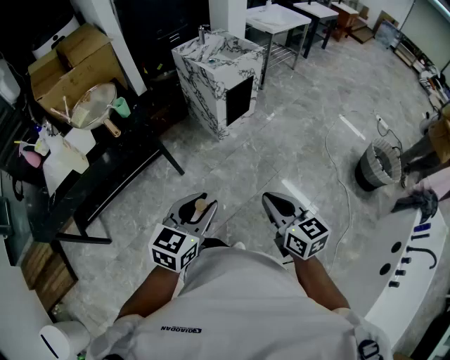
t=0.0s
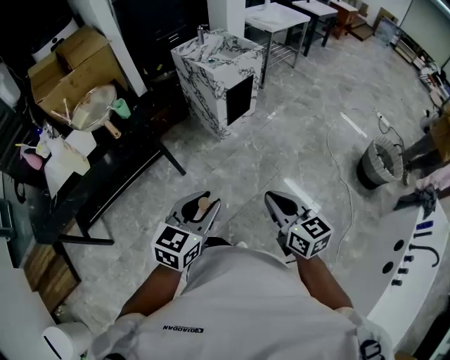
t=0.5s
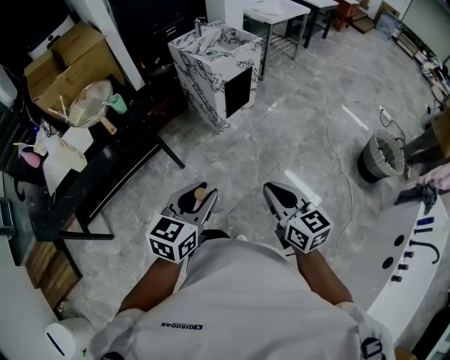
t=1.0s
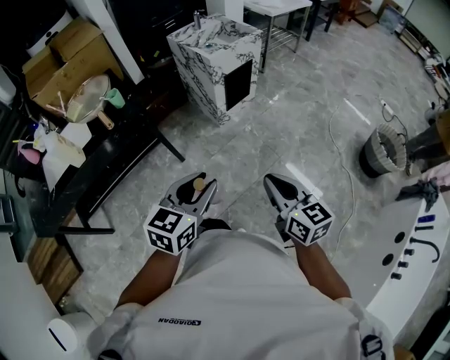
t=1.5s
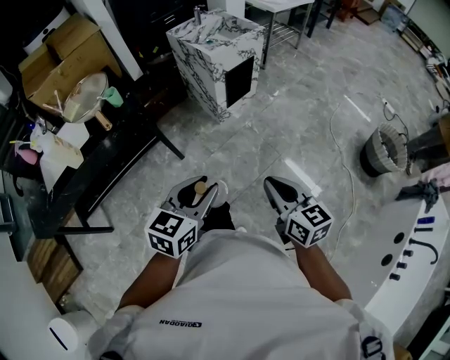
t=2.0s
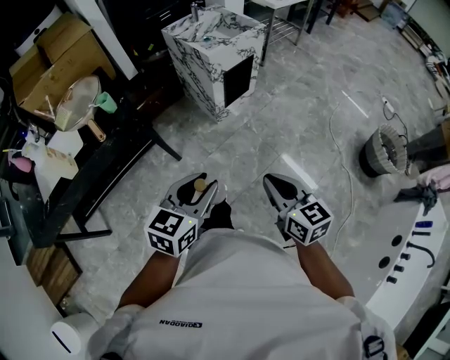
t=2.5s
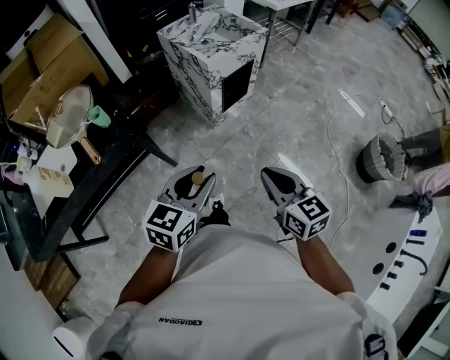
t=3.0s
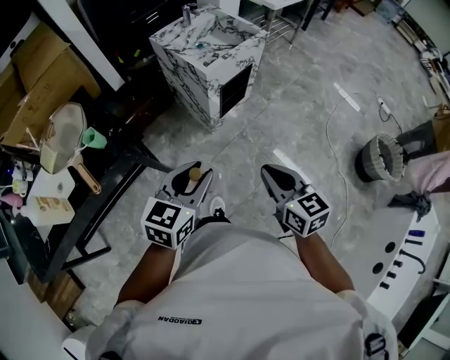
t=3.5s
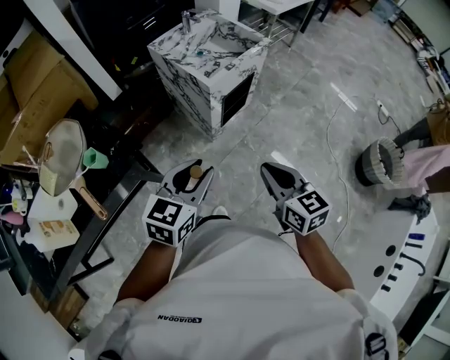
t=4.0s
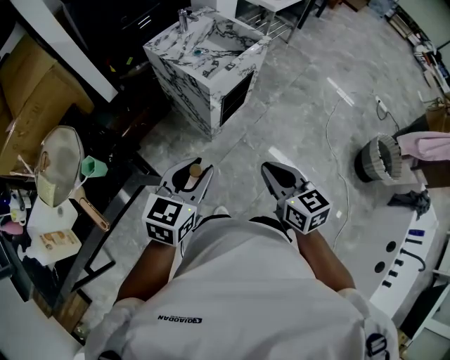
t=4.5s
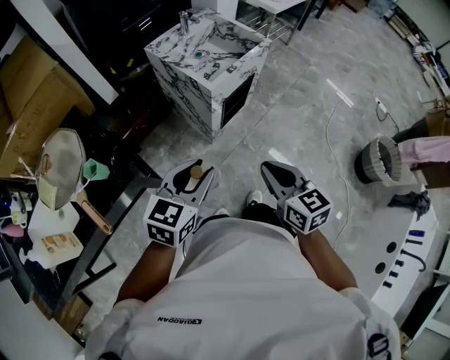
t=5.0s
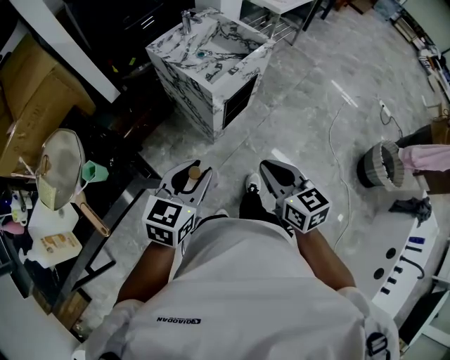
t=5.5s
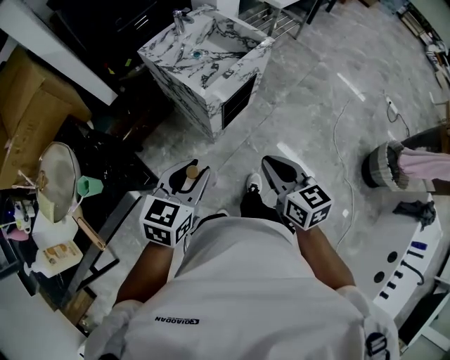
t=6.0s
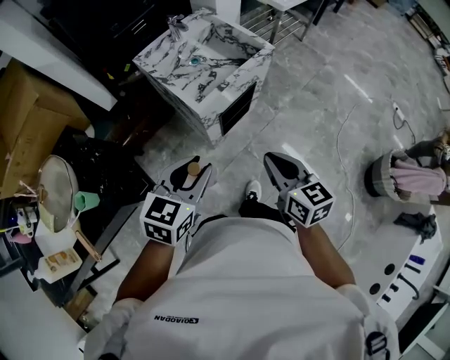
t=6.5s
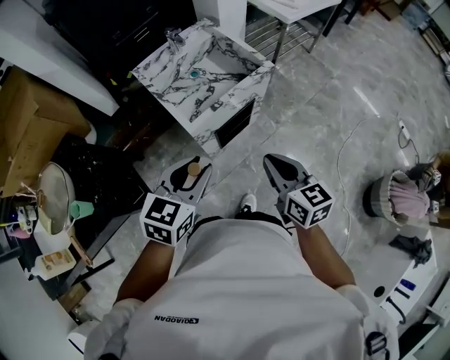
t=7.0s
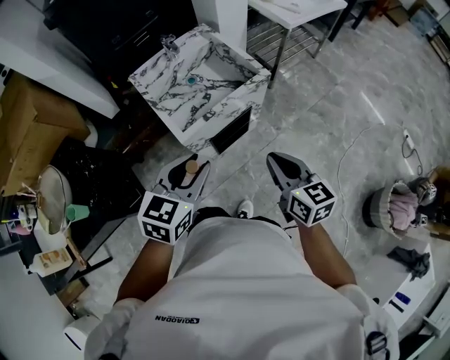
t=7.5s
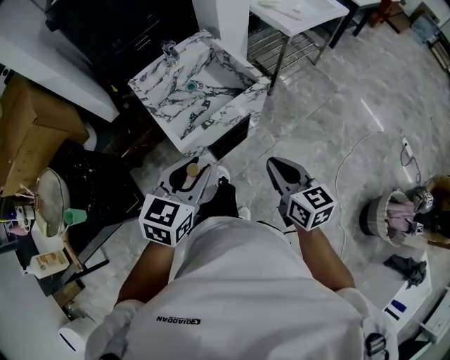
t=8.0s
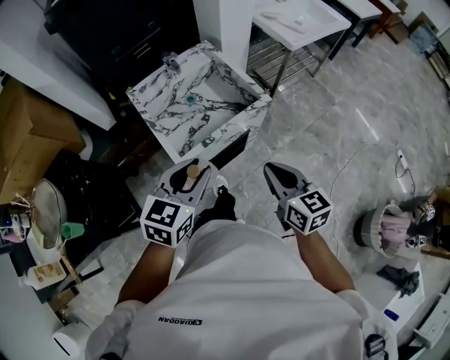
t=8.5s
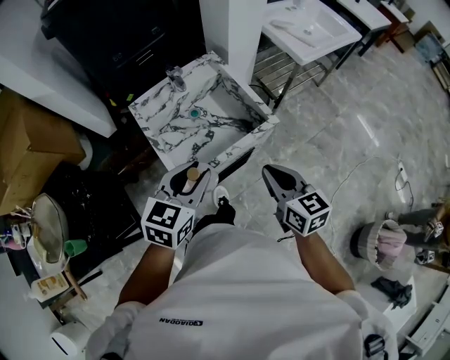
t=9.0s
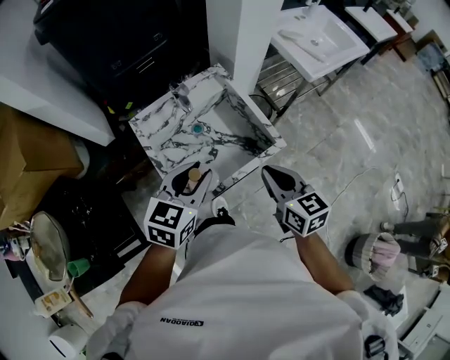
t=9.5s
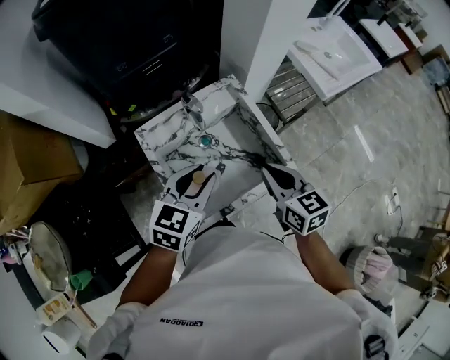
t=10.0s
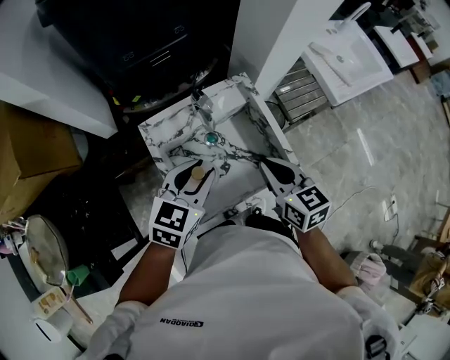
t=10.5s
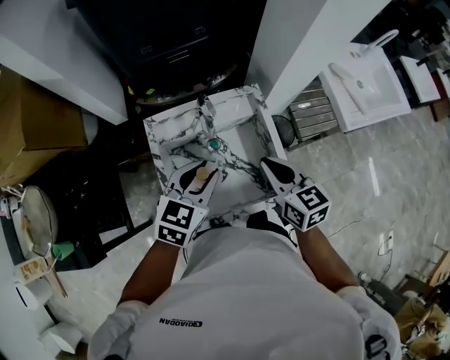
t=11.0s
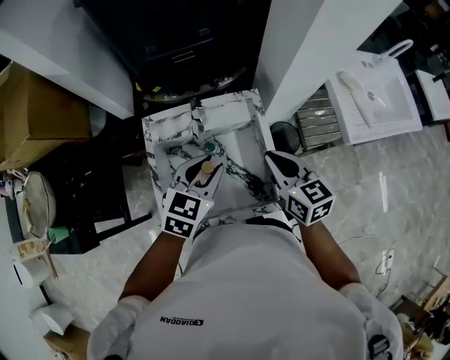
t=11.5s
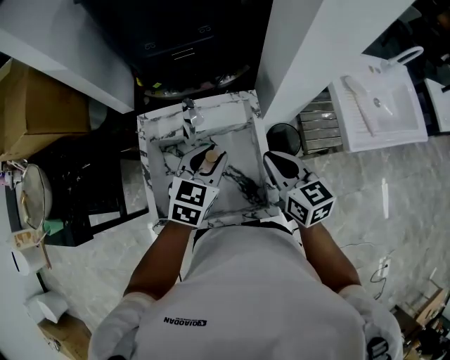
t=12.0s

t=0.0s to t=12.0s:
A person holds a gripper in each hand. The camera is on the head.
t=0.0s to t=2.0s: The grippers make only small movements.
t=2.0s to t=4.0s: The grippers both shift forward by about 35 cm.
t=4.0s to t=6.0s: Both grippers travel together forward, about 10 cm.
t=6.0s to t=8.0s: Both grippers move forward and to the right, some 25 cm.
t=8.0s to t=10.0s: Both grippers travel together forward, some 35 cm.
t=10.0s to t=12.0s: The right gripper travels forward and to the right by about 15 cm, and turns by about 20 degrees; the left gripper travels forward, to the right and downward by about 20 cm, and rotates approximately 20 degrees.

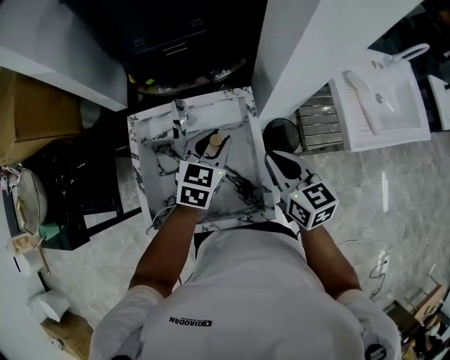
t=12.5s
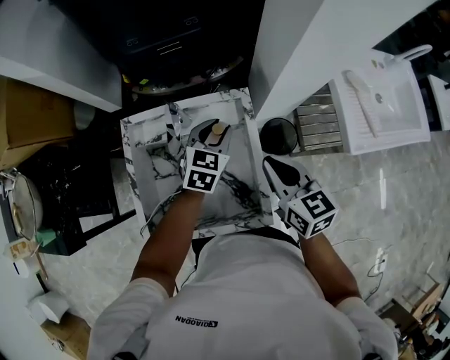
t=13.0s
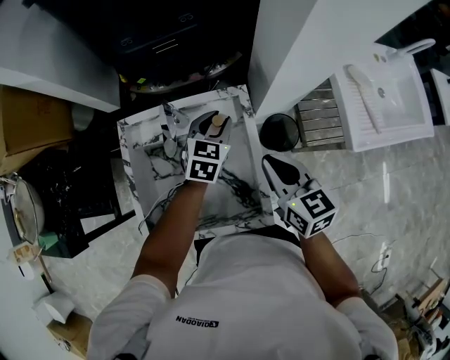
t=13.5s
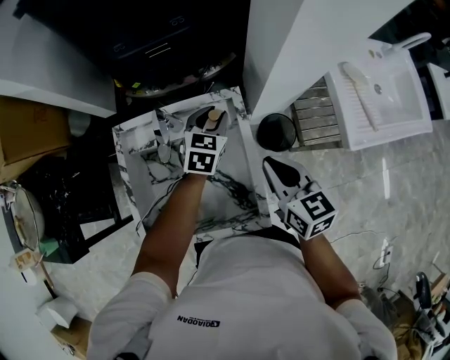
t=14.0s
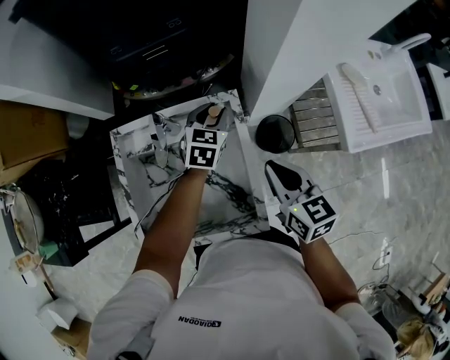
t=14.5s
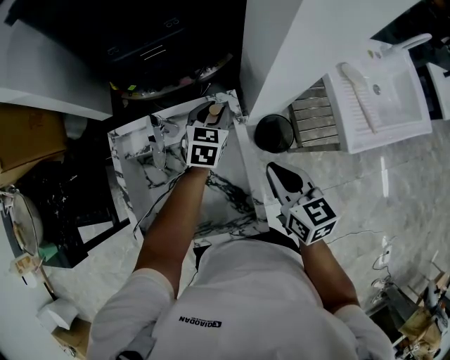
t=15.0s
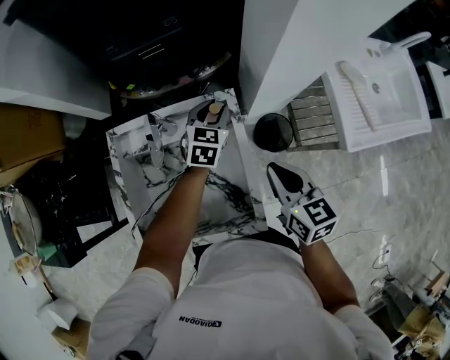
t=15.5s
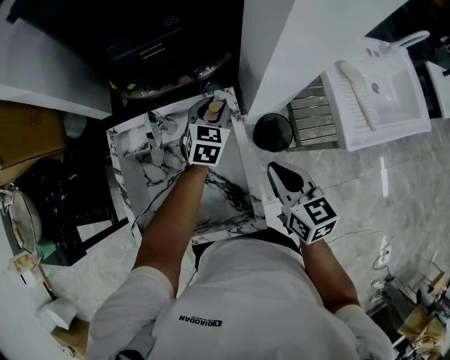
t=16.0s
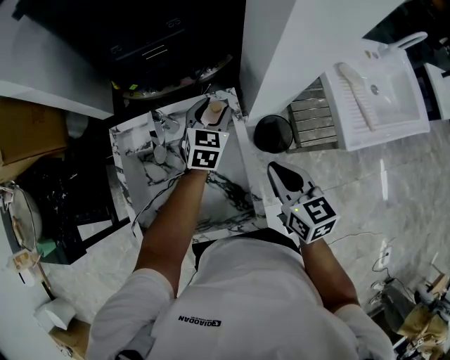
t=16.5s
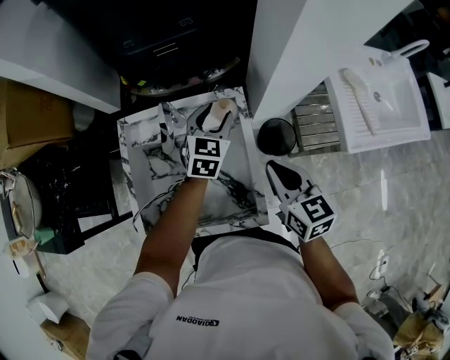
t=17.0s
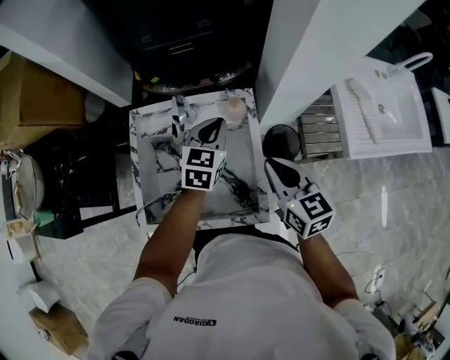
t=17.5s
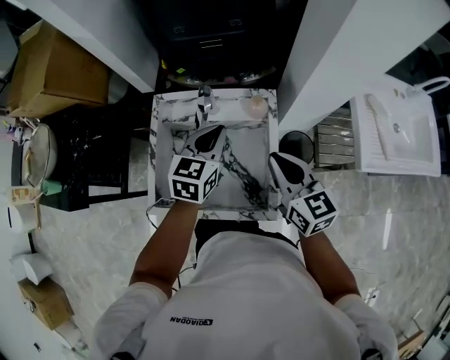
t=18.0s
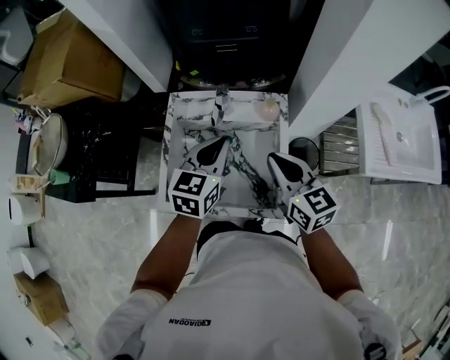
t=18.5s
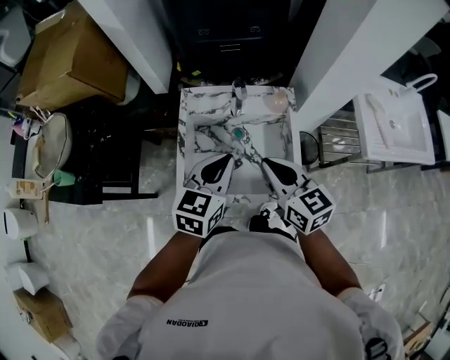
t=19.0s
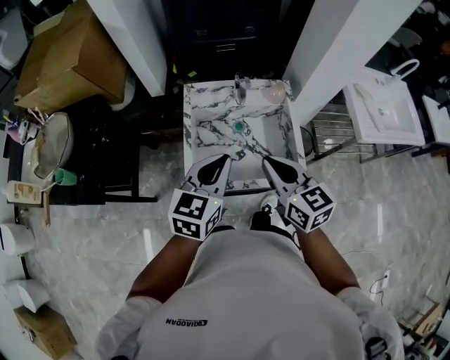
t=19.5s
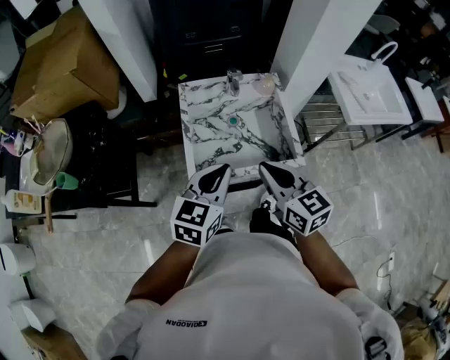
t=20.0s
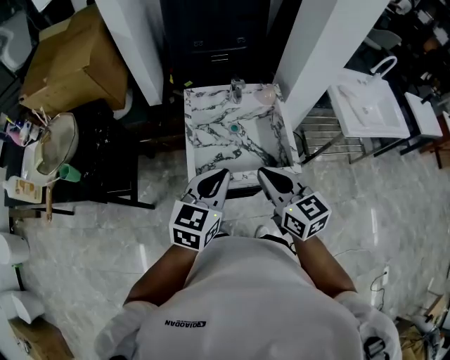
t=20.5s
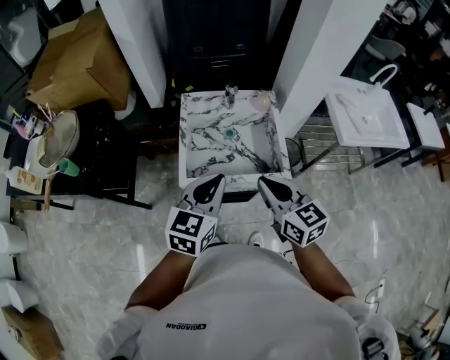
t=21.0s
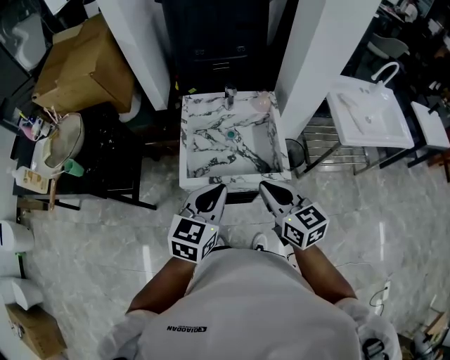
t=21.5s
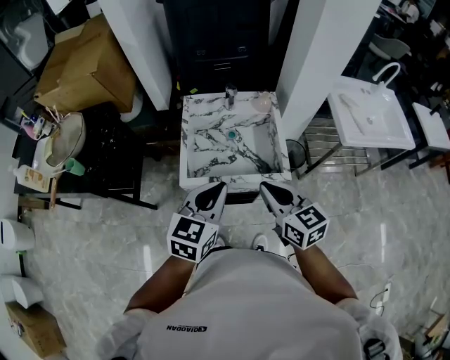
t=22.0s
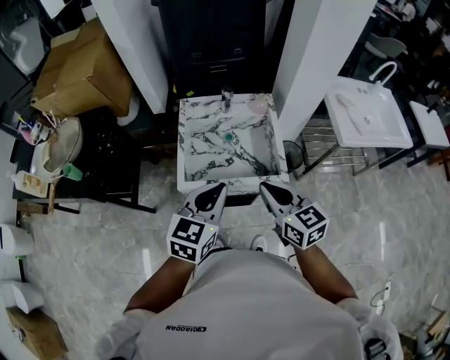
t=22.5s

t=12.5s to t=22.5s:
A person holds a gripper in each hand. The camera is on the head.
t=12.5s to t=14.5s: The left gripper moves forward, downward and to the right, approximately 15 cm.
t=14.5s to t=16.5s: There are only small adjustments of the grippers.
t=16.5s to t=18.5s: The left gripper moves backward, to the left and upward, about 30 cm, and closes its fingers; the right gripper is displaced to the left and upward by about 15 cm, and turns by roughly 20 degrees.
t=18.5s to t=20.5s: Both grippers travel together backward and to the left, approximately 30 cm.
t=20.5s to t=22.5s: Both grippers move to the right, about 5 cm.

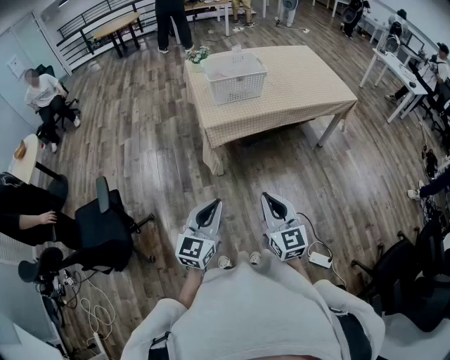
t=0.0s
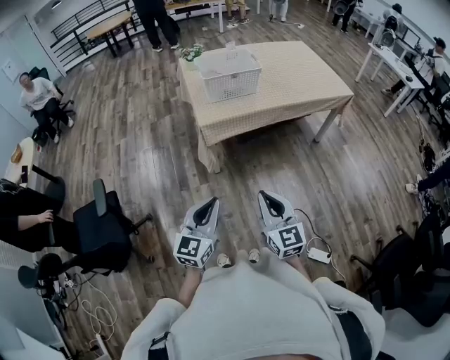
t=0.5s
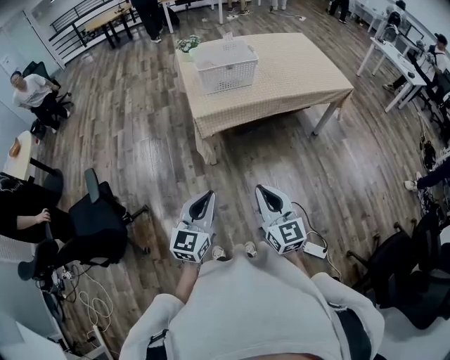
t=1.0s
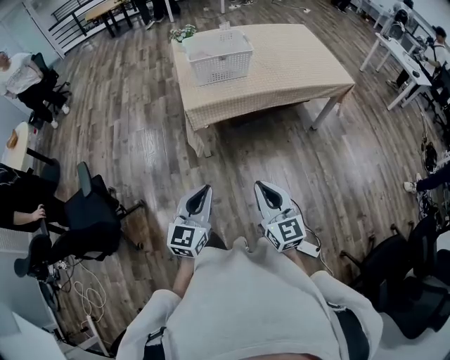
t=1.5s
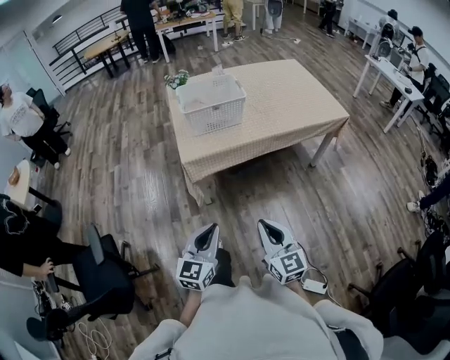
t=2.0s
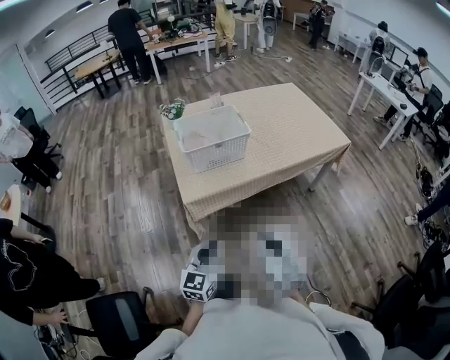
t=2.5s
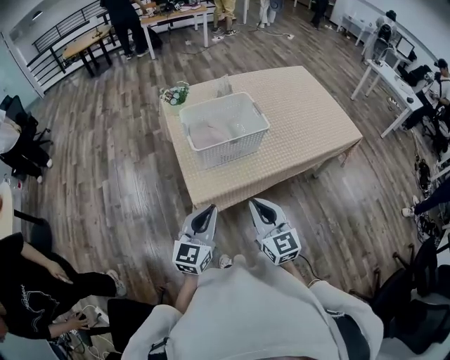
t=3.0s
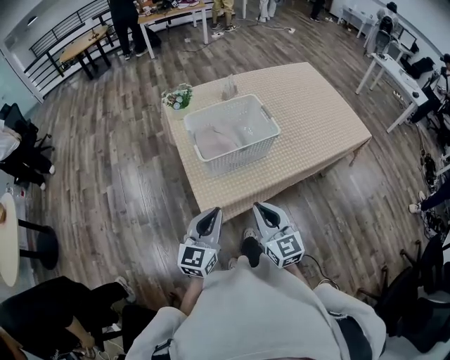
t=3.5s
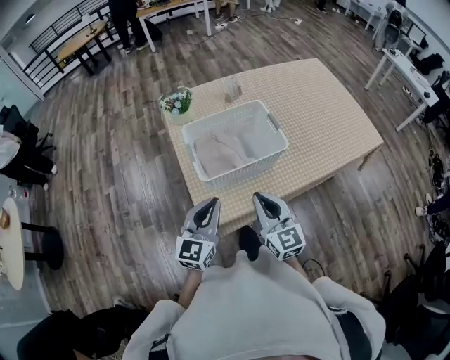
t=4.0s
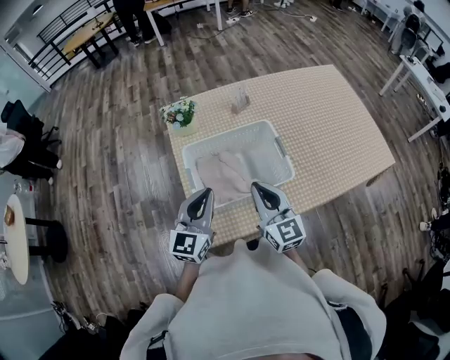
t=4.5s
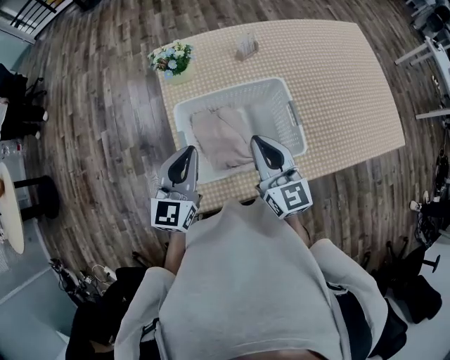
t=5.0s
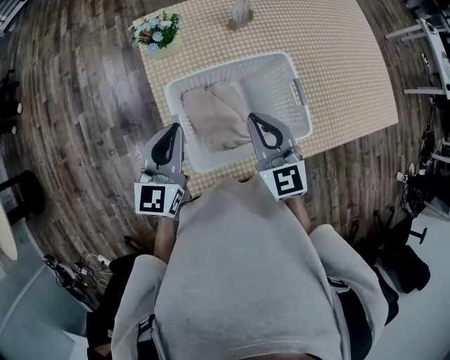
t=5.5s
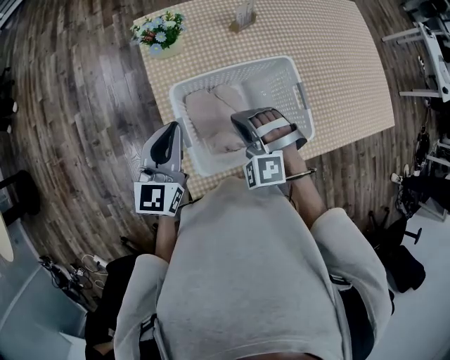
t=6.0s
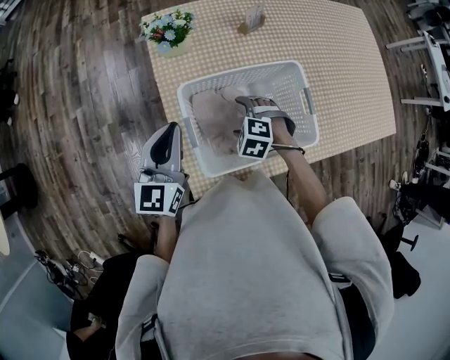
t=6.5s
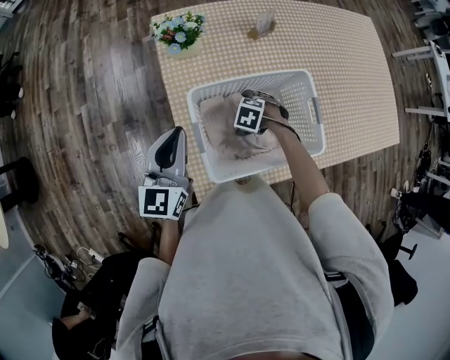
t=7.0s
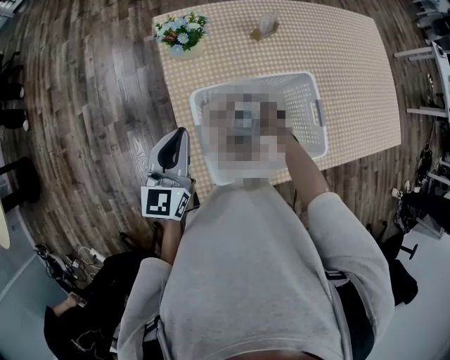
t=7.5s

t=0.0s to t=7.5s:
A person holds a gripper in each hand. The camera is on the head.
t=0.0s to t=2.0s: The grippers both shift forward and to the right by roughly 15 cm.
t=2.0s to t=4.0s: The pair of grippers is taken forward, about 50 cm.
t=4.0s to t=5.5s: Both grippers move forward, about 25 cm.
t=5.5s to t=7.5s: The right gripper moves downward, roughly 30 cm, tips its fingers downward by approximately 60 degrees, and opens; the left gripper shifts by some 5 cm.
